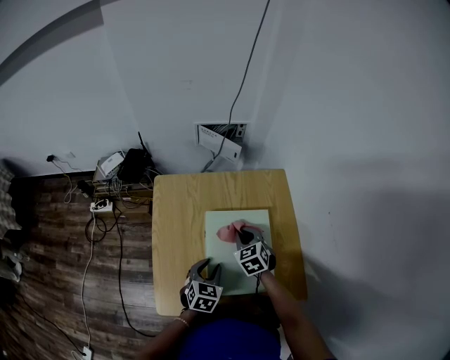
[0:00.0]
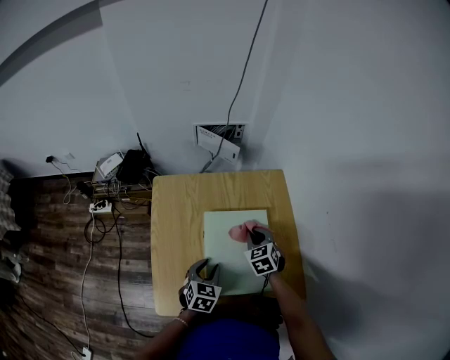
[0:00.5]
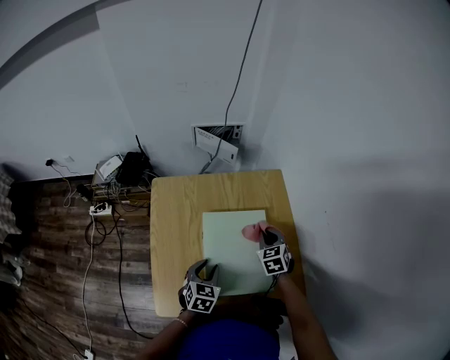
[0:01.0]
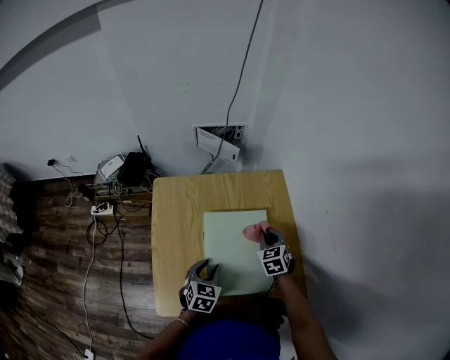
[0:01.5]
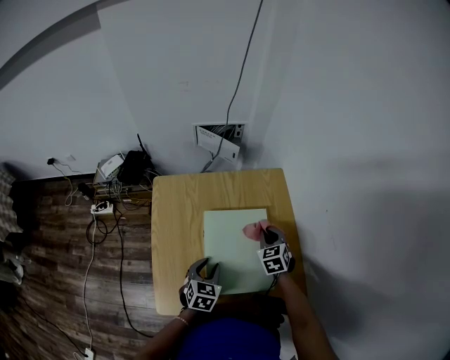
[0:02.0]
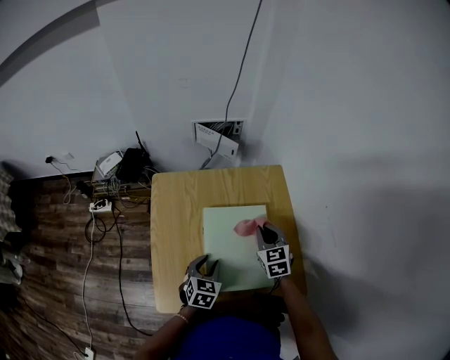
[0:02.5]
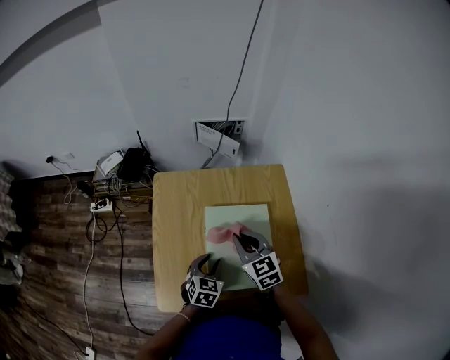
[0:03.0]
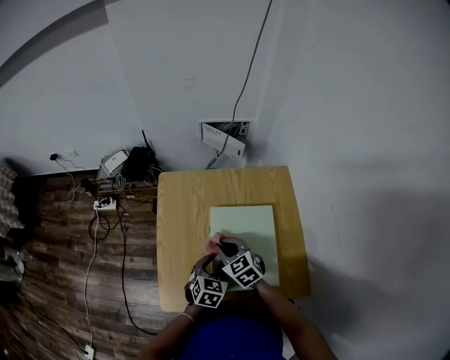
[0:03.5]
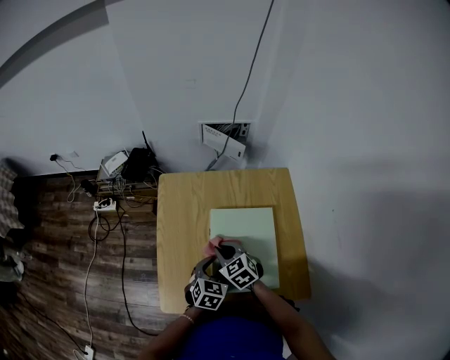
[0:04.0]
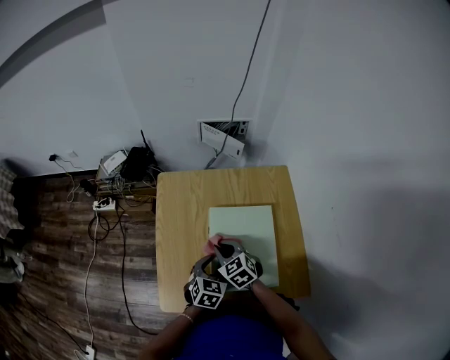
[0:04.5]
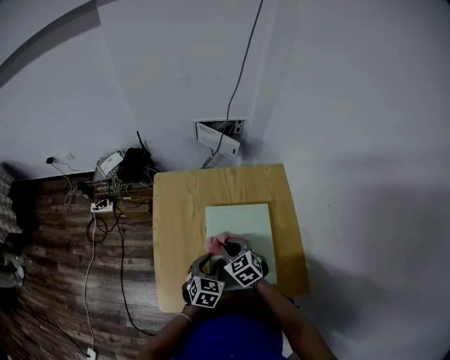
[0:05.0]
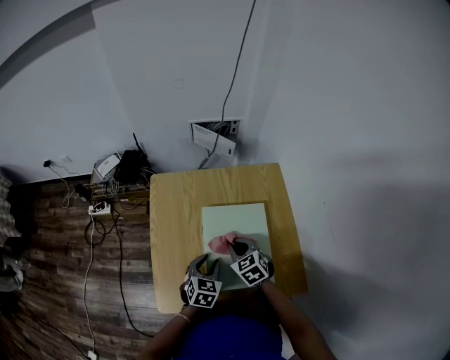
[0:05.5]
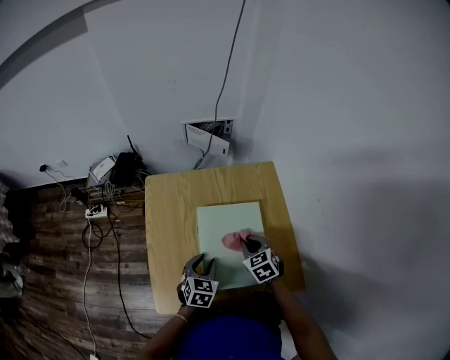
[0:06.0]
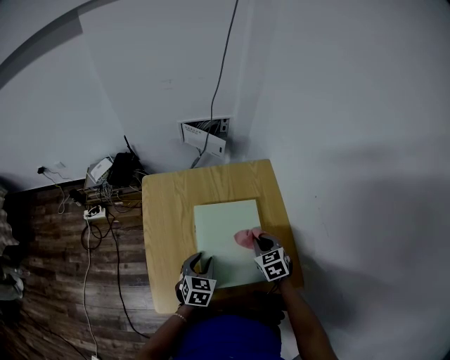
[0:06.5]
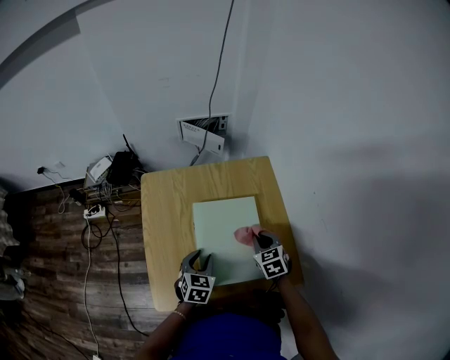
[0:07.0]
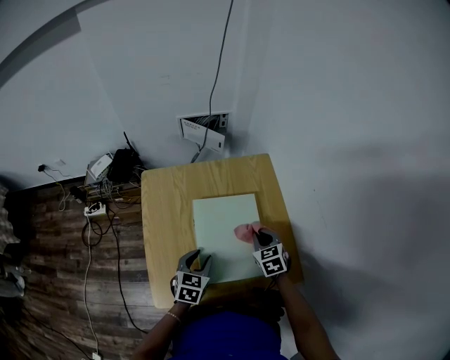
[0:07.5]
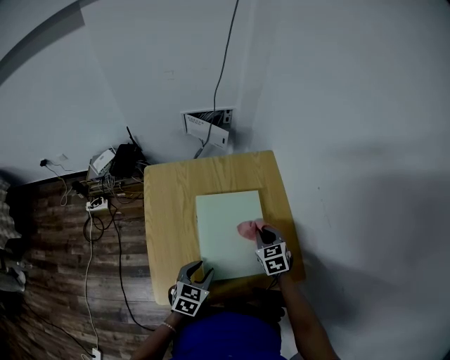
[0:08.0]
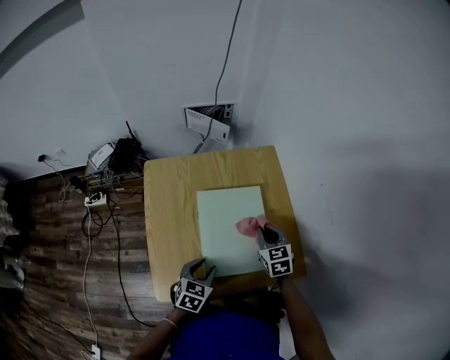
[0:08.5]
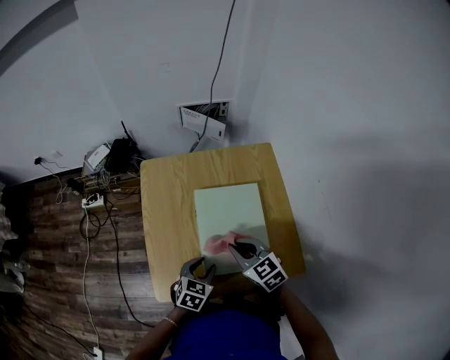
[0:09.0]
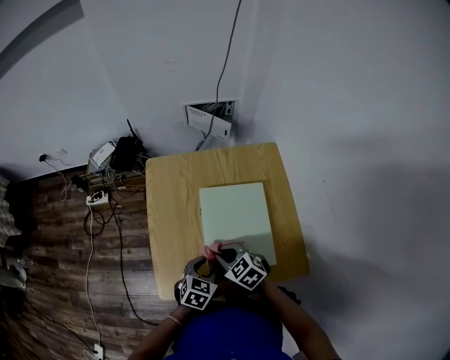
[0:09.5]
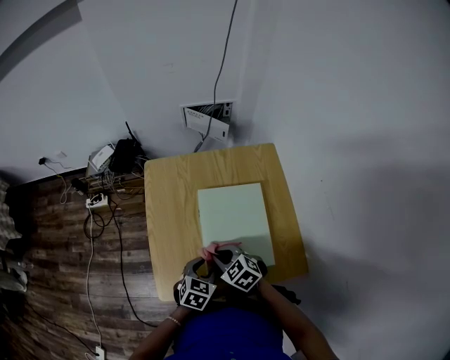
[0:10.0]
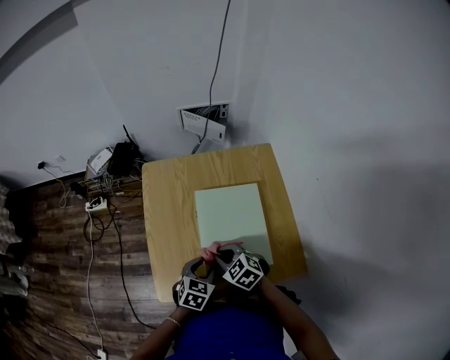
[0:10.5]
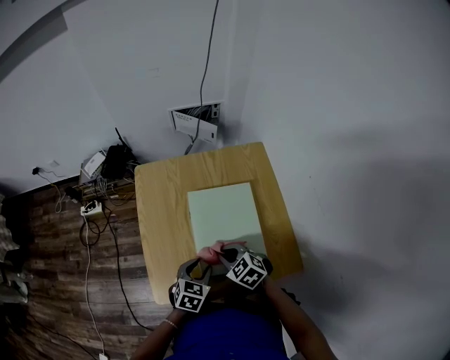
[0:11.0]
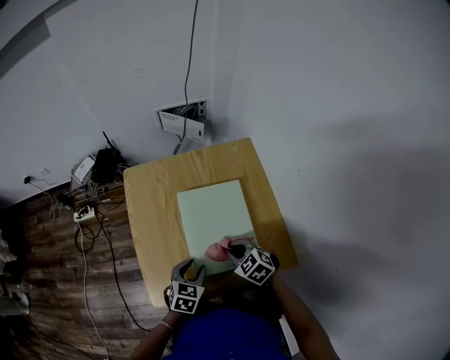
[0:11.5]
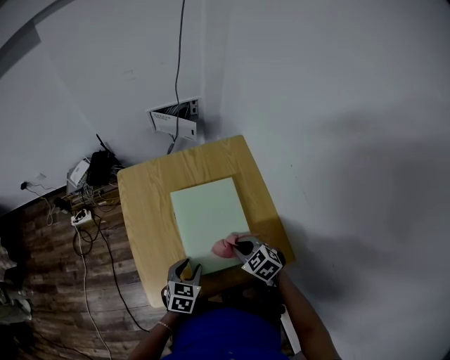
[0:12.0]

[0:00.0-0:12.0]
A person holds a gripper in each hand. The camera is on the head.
0:00.0 to 0:02.0: The right gripper is displaced to the right by roughly 10 cm.
0:02.0 to 0:04.0: The right gripper is displaced to the left by about 20 cm, and turns by some 30 degrees.
0:04.0 to 0:06.0: The right gripper travels to the right by roughly 15 cm.
0:06.0 to 0:08.0: The left gripper travels backward by approximately 5 cm. The right gripper is displaced to the right by roughly 5 cm.
0:08.0 to 0:10.0: The right gripper shifts roughly 20 cm to the left and backward, and rotates some 40 degrees.
0:10.0 to 0:12.0: The right gripper is displaced to the right by about 15 cm.

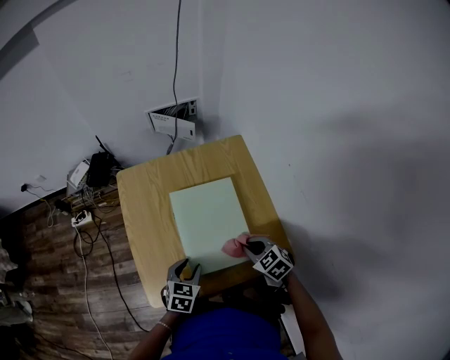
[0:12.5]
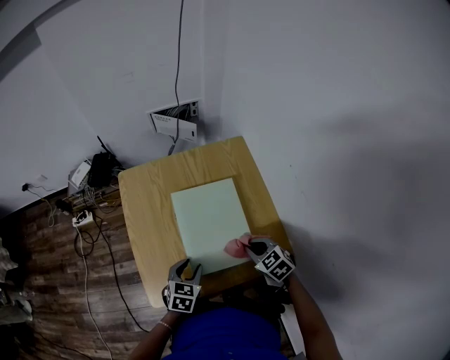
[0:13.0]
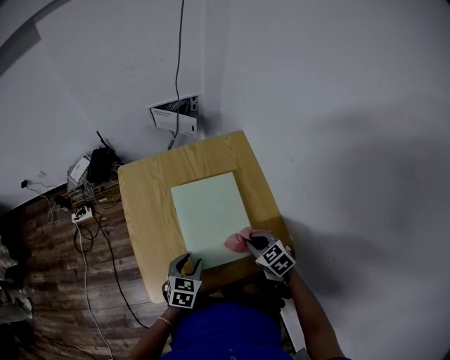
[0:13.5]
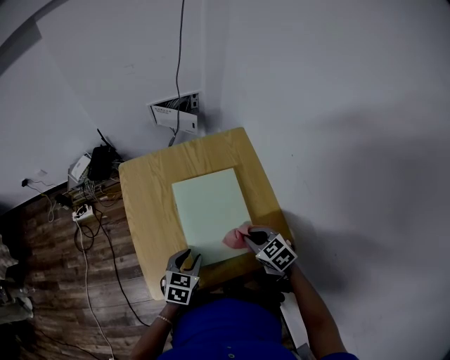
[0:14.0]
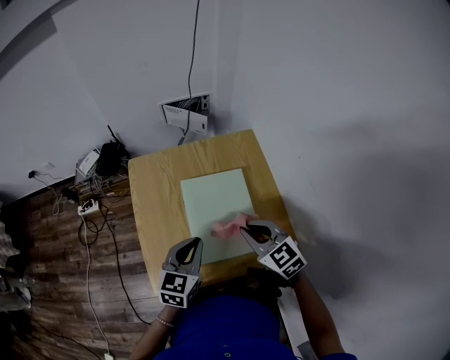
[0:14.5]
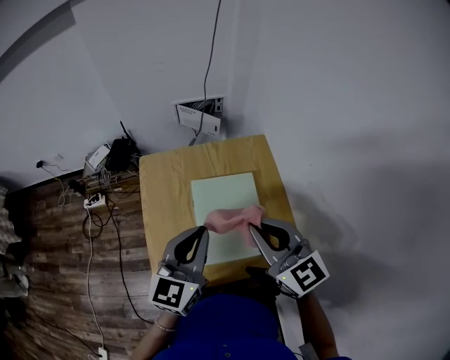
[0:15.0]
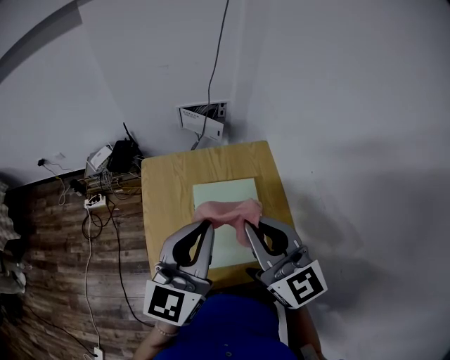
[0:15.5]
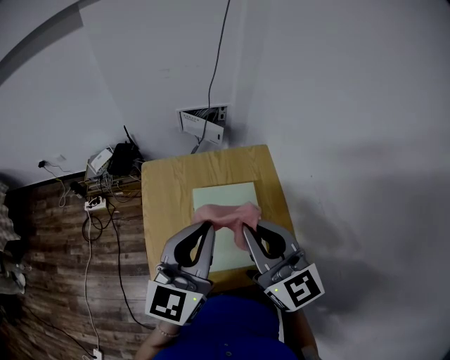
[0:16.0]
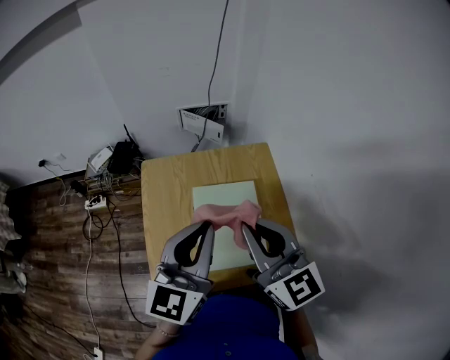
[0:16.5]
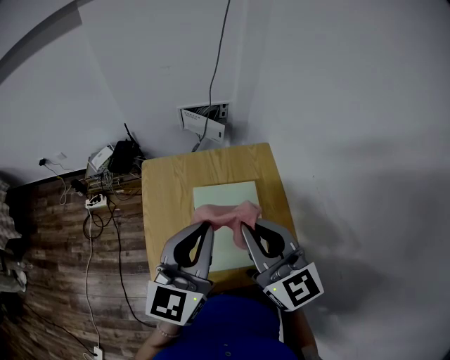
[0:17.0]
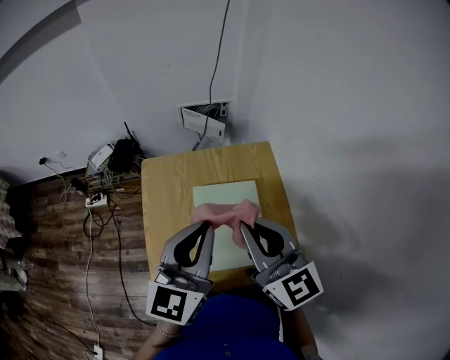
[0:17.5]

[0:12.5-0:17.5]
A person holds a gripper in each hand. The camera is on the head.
0:12.5 to 0:15.0: The grippers both shift upward by about 30 cm. The left gripper tilts its fingers some 40 degrees upward, and closes up. The right gripper tips its fingers upward by some 40 degrees.
0:15.0 to 0:17.5: The right gripper moves approximately 5 cm. Meanwhile the left gripper shifts some 10 cm upward.

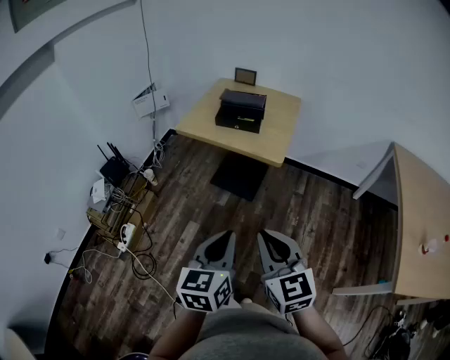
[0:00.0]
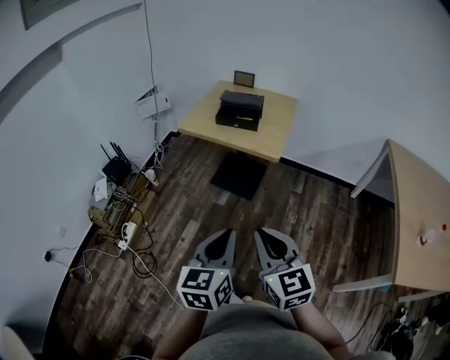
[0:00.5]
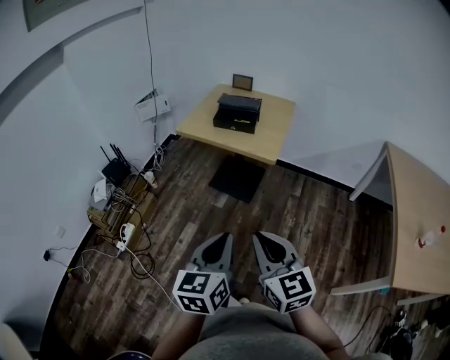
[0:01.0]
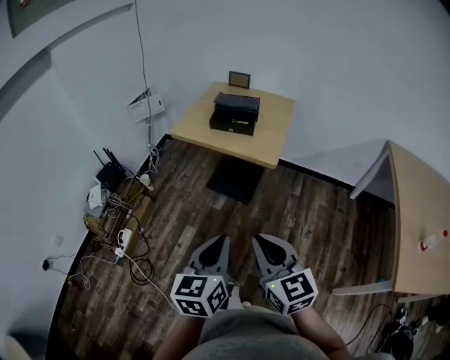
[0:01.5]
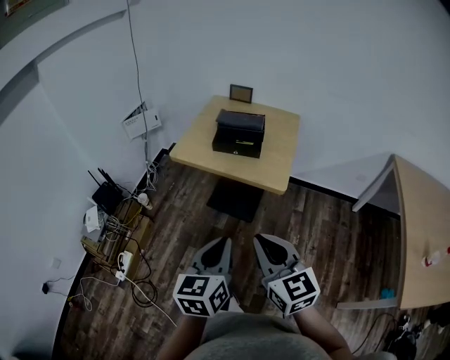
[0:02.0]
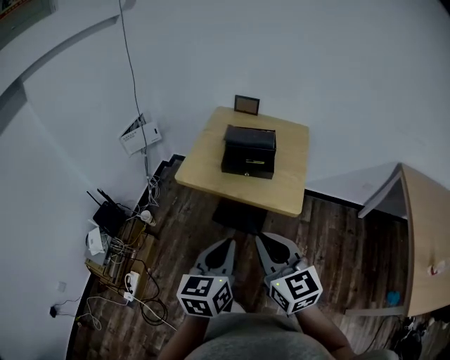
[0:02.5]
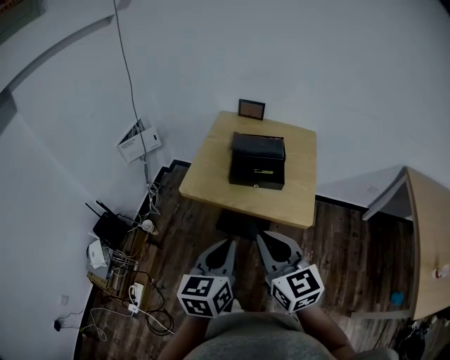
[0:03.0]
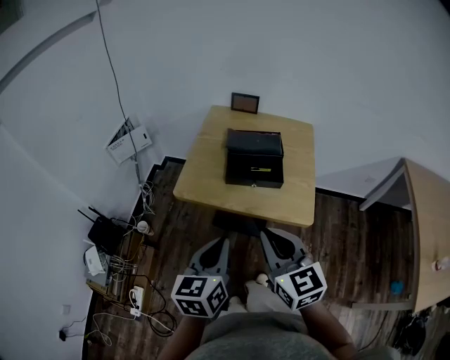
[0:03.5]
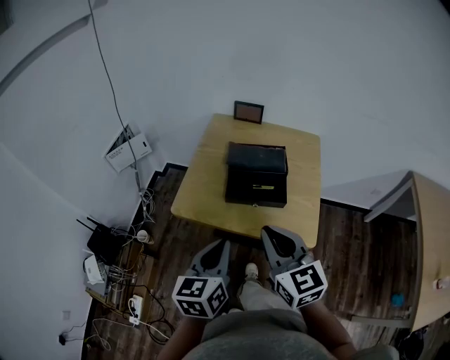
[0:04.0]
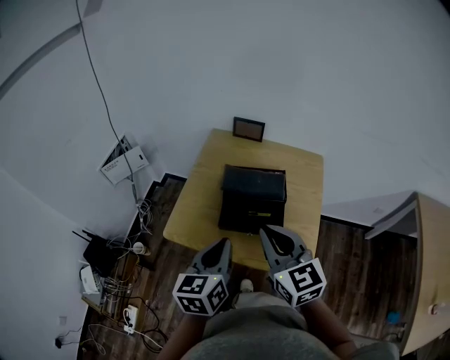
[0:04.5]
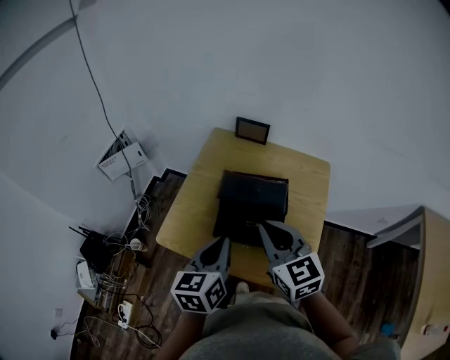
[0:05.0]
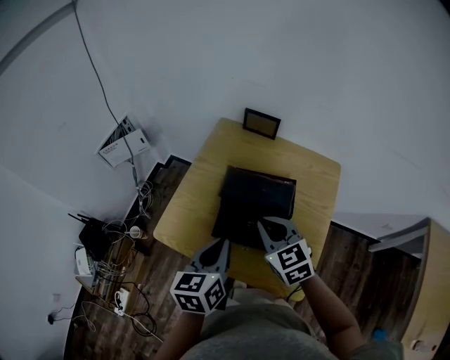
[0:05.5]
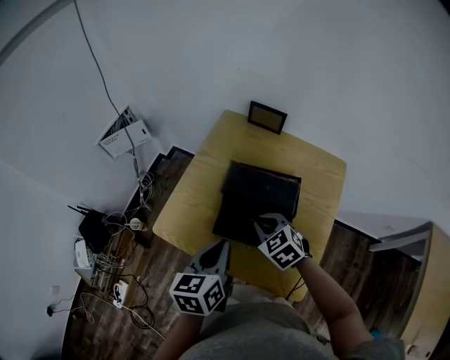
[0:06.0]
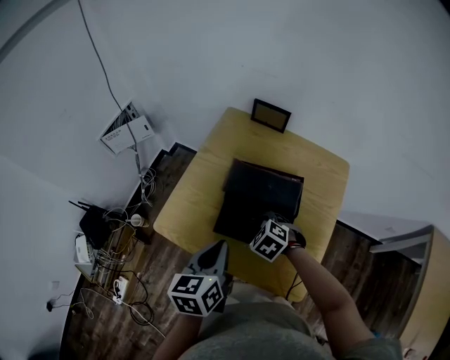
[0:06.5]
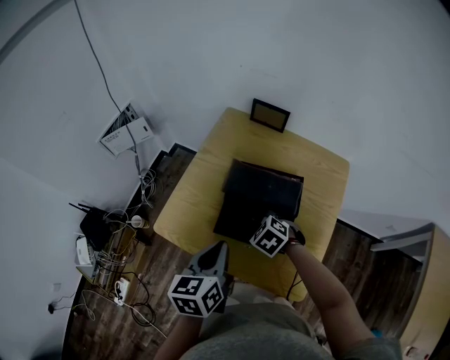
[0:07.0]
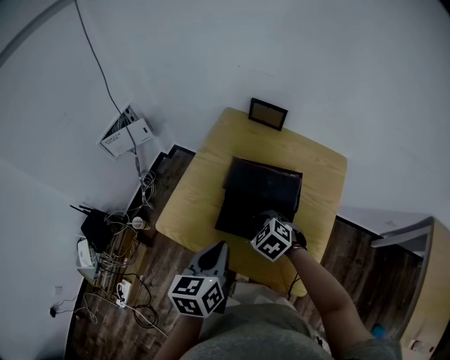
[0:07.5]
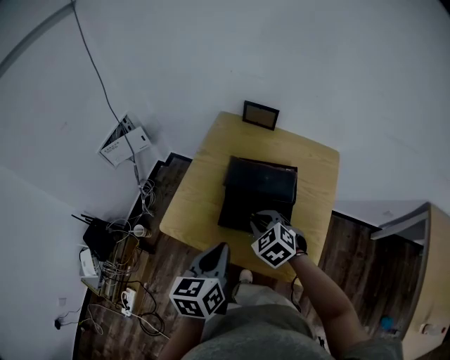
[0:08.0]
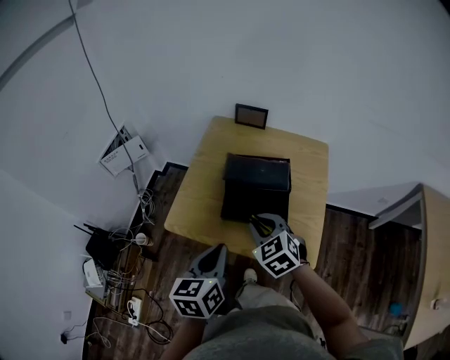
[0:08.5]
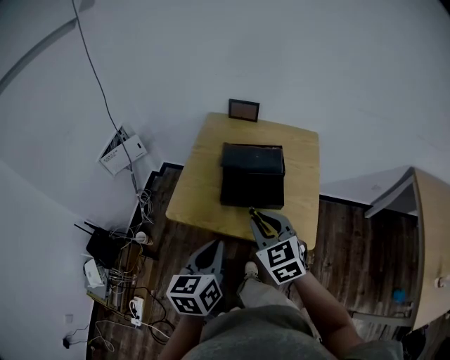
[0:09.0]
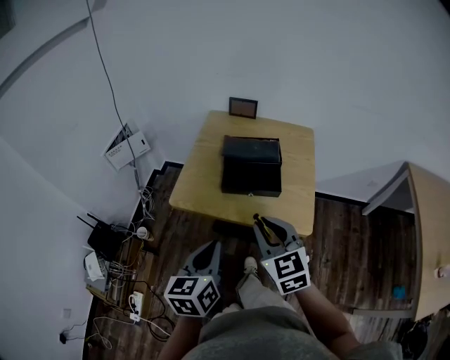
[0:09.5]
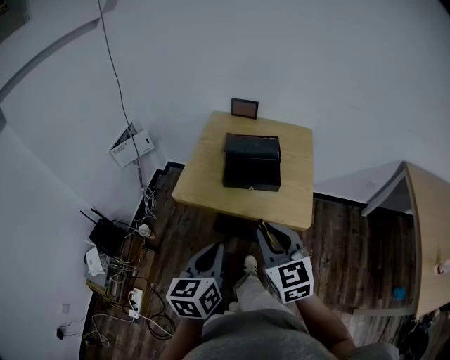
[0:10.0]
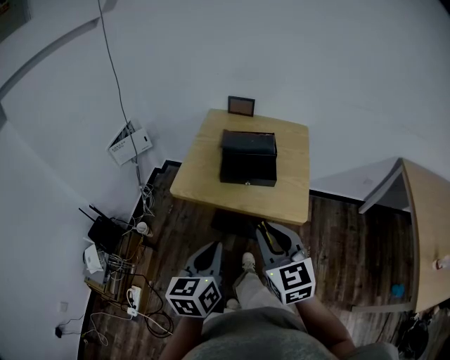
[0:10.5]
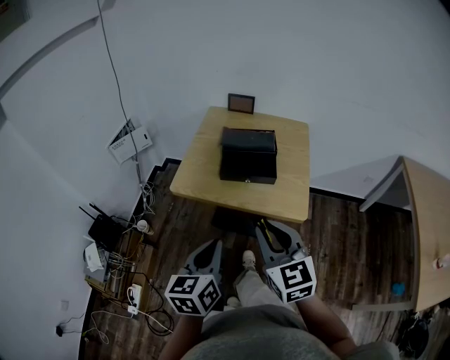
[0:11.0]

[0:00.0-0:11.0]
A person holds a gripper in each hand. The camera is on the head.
0:00.0 to 0:02.0: Both grippers travel together forward, roughly 10 cm.
0:02.0 to 0:03.5: The left gripper heads forward and to the left, covering roughly 25 cm; the right gripper is displaced forward by some 25 cm.
0:03.5 to 0:05.5: Both grippers move forward, some 30 cm. The right gripper changes its angle by roughly 20 degrees.
0:05.5 to 0:07.5: The right gripper moves downward, some 15 cm, and tips its fingers downward by about 30 degrees.
0:07.5 to 0:09.0: The left gripper shifts some 15 cm backward. Meanwhile the right gripper shifts approximately 25 cm upward and backward, and tilts its fingers approximately 30 degrees upward.
0:09.0 to 0:11.0: The two grippers go roughly 15 cm backward.
